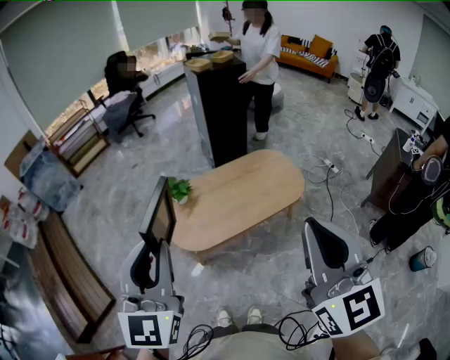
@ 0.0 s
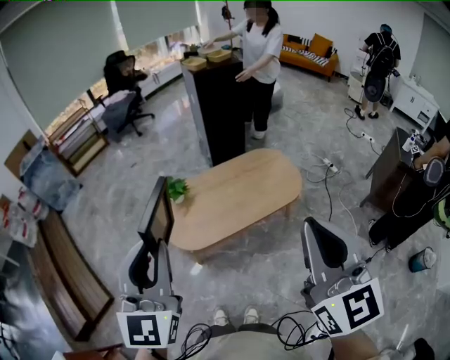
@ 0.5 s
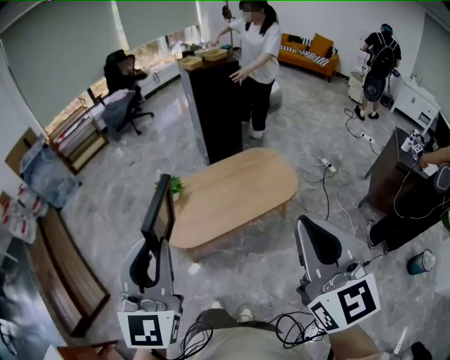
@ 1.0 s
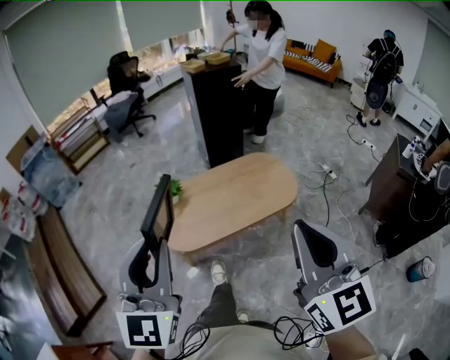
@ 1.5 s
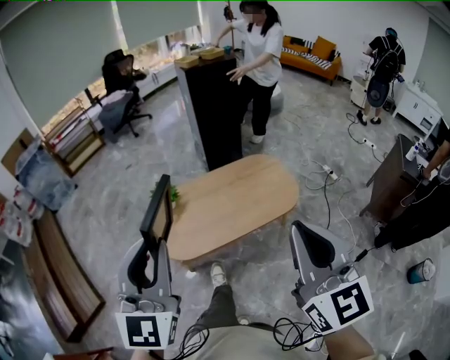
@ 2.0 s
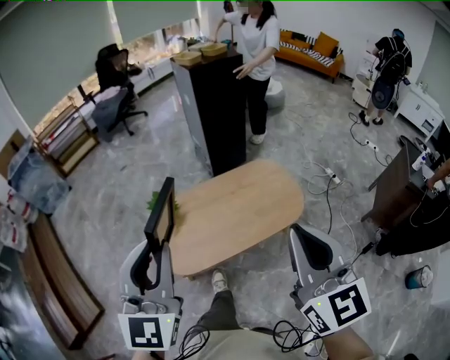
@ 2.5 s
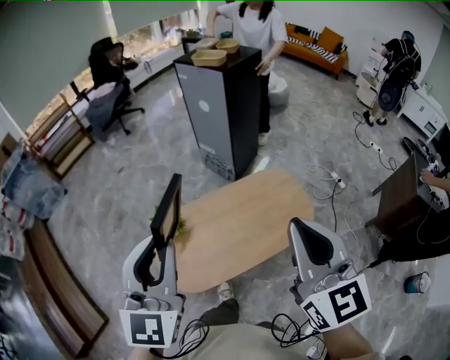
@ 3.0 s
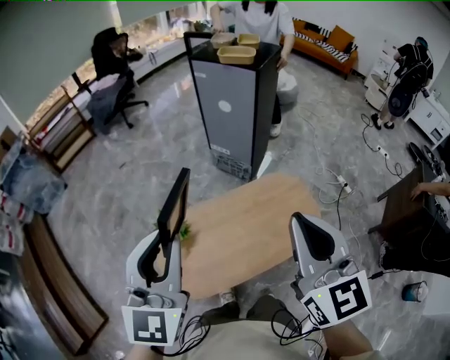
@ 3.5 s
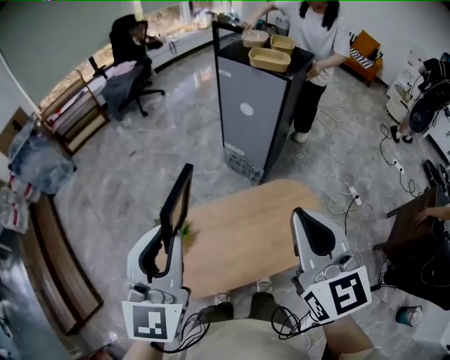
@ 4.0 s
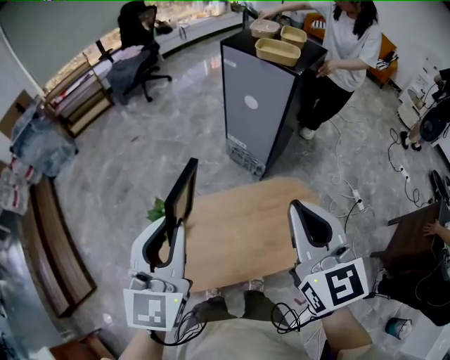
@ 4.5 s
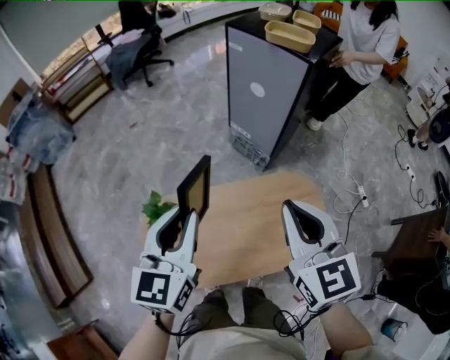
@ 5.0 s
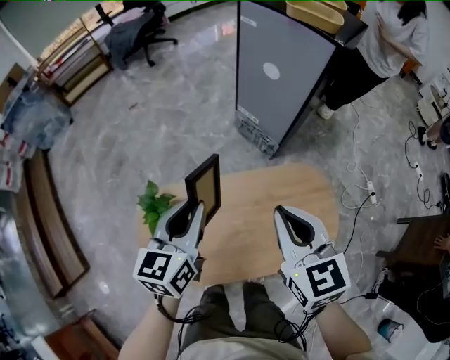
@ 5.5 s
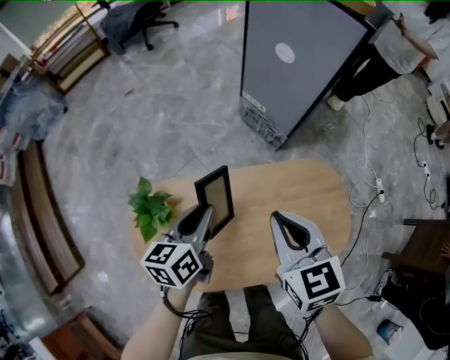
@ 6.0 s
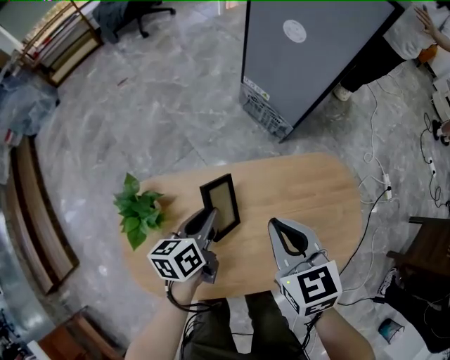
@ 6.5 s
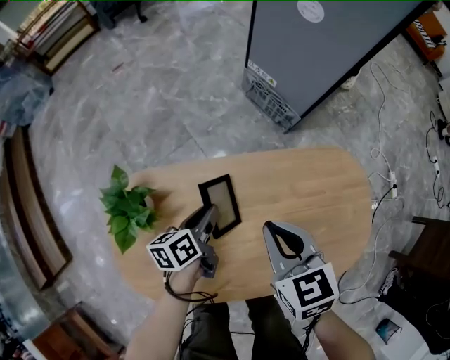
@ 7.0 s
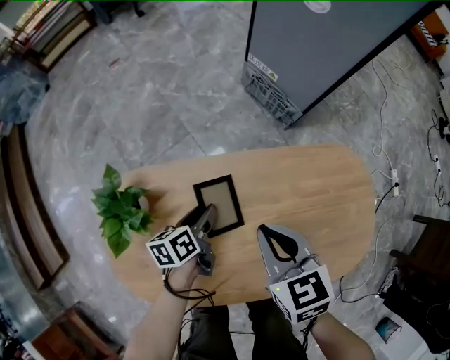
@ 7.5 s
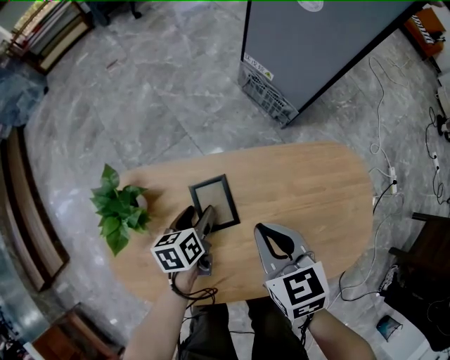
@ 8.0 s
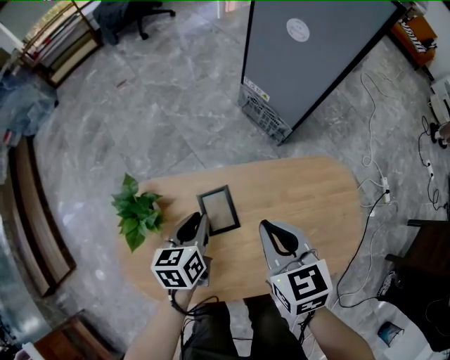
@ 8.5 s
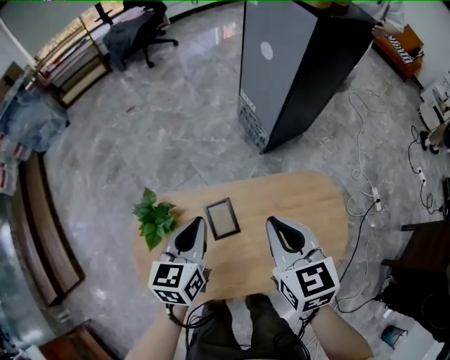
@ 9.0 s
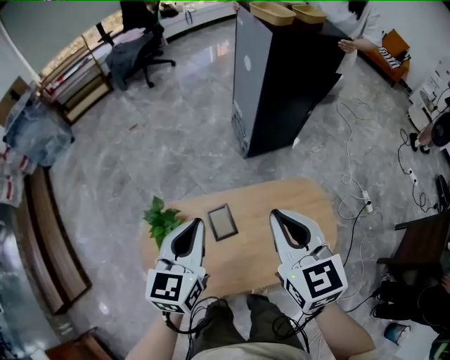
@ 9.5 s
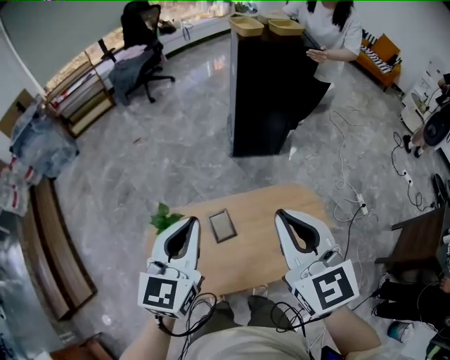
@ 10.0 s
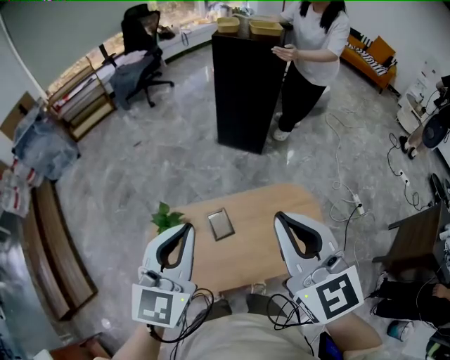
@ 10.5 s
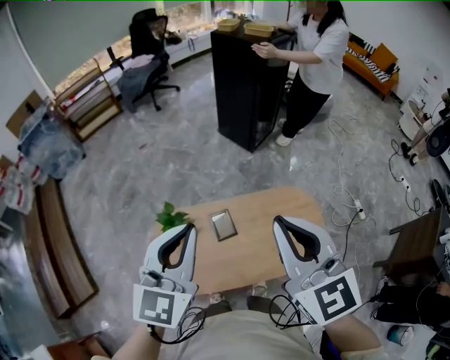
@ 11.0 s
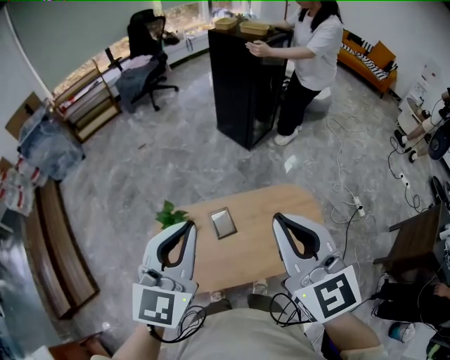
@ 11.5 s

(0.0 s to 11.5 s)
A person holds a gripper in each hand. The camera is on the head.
0.0 s - 2.0 s: The left gripper moves to the right, about 5 cm. The right gripper travels forward, to the right and downward by approximately 10 cm.
2.0 s - 4.0 s: Both grippers travel together forward, approximately 40 cm.
4.0 s - 6.0 s: The grippers both shift downward and forward by approximately 40 cm. The right gripper changes its angle by some 30 degrees. The left gripper rotates around the line of its fingers by about 50 degrees, counterclockwise from behind.
6.0 s - 7.5 s: Both grippers move downward, about 25 cm. The left gripper rotates some 20 degrees.
7.5 s - 9.5 s: Both grippers travel together upward, roughly 40 cm. The left gripper twists roughly 40 degrees clockwise, seen from behind, and closes. The right gripper swivels some 20 degrees.
9.5 s - 11.5 s: The grippers both shift upward and backward by some 20 cm. The left gripper turns by about 20 degrees.

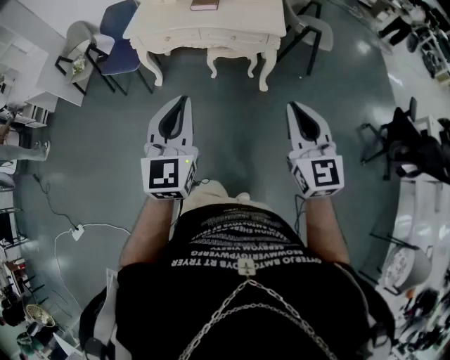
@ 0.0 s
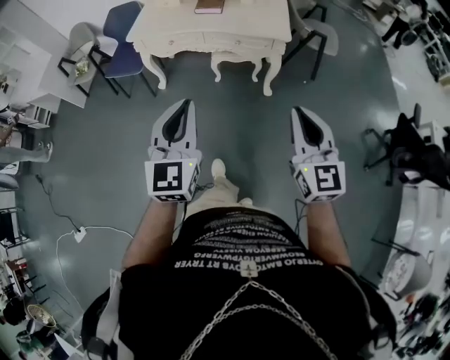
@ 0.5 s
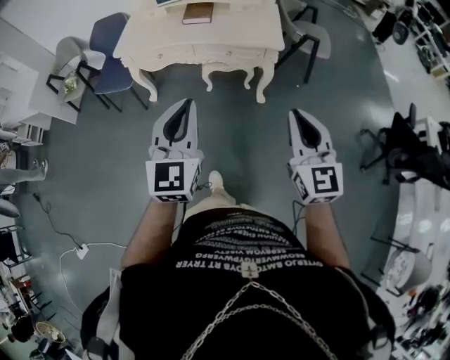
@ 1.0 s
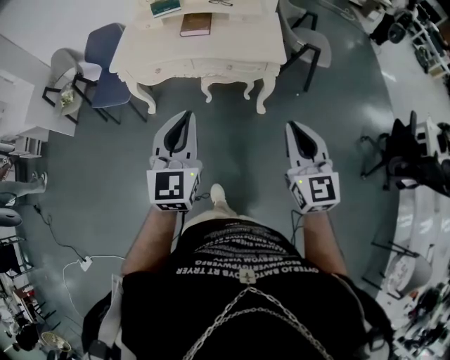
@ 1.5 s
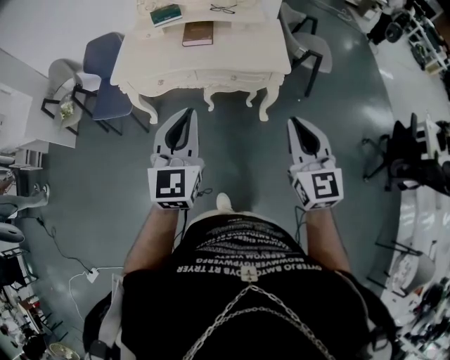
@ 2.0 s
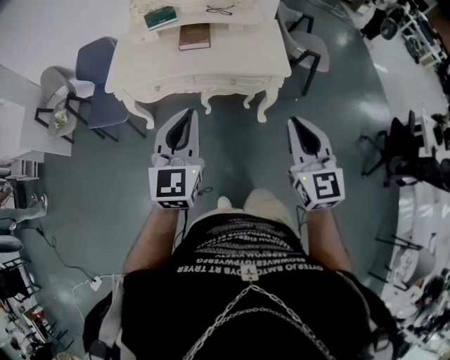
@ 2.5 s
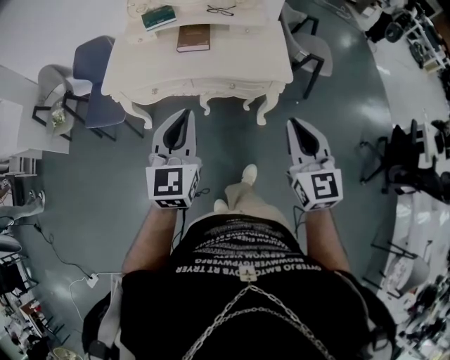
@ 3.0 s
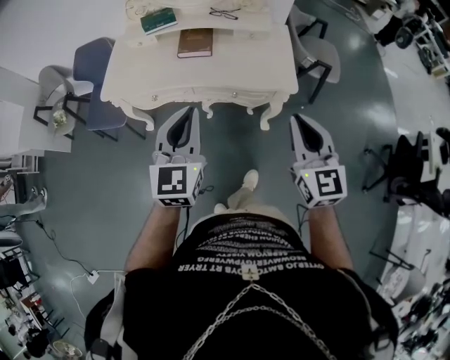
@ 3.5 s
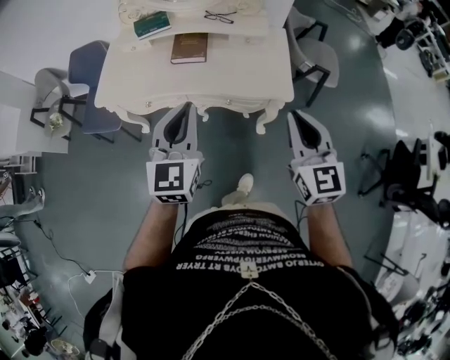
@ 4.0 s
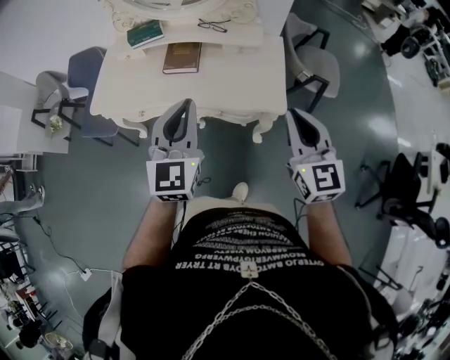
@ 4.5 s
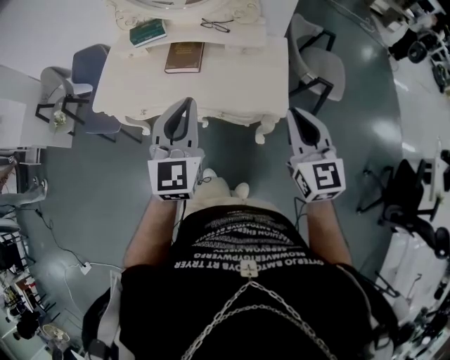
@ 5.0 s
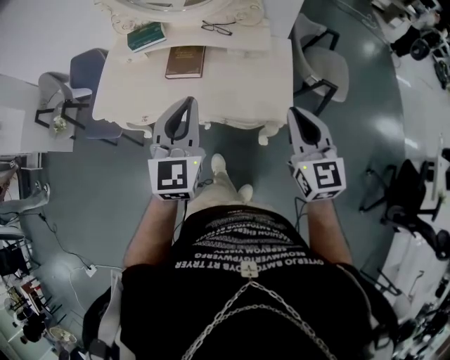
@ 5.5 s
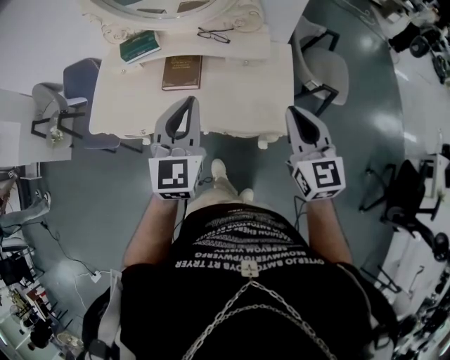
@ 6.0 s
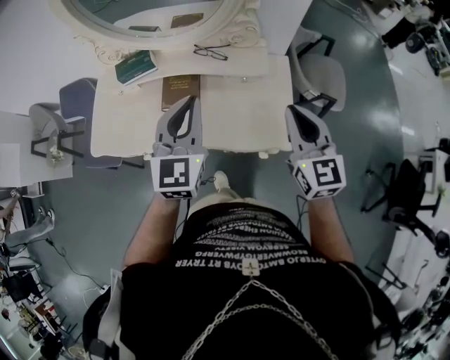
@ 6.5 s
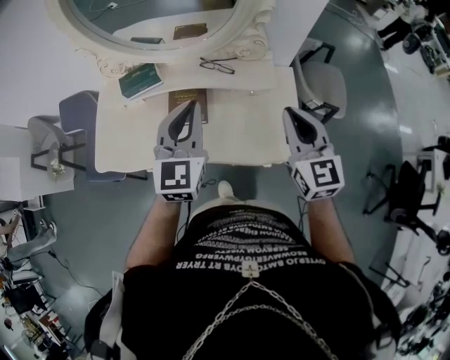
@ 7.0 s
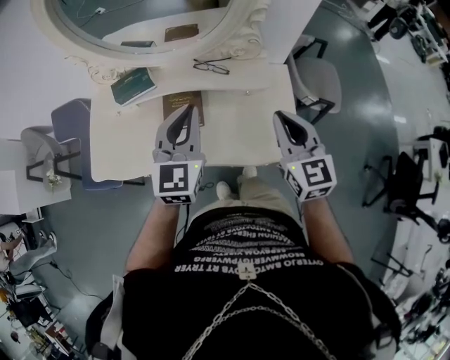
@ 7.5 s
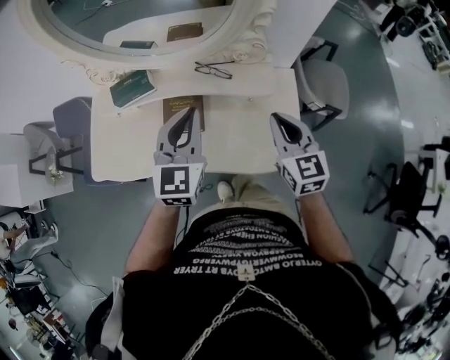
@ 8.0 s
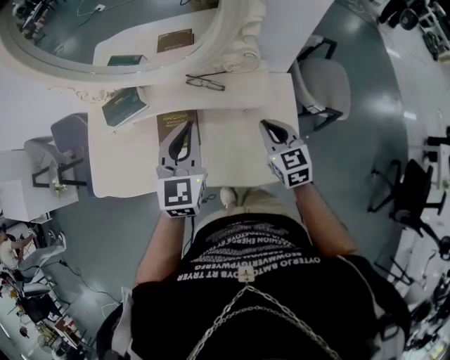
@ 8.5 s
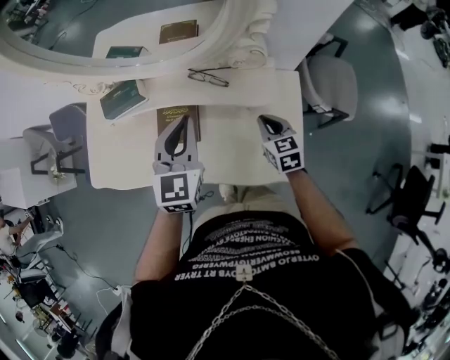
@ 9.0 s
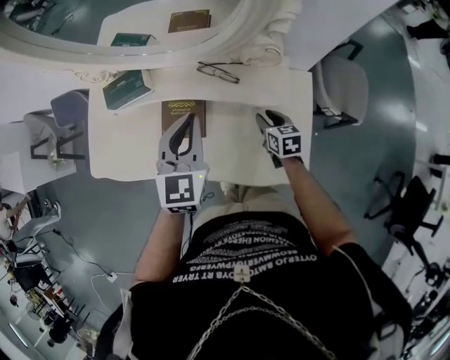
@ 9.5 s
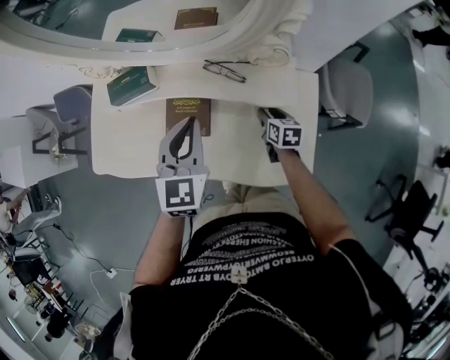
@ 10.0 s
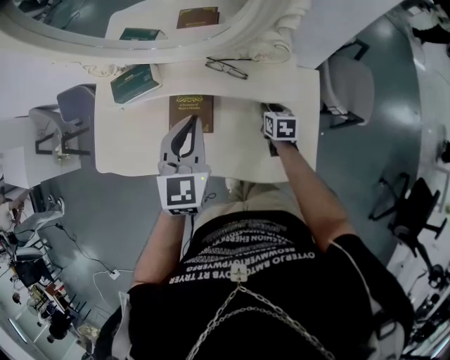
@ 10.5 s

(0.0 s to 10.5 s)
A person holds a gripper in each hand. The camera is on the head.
0.0 s - 2.0 s: Both grippers travel together forward, some 25 cm.
2.0 s - 4.0 s: Both grippers travel together forward, approximately 25 cm.
4.0 s - 6.5 s: Both grippers travel together forward, about 25 cm.
6.5 s - 8.5 s: The right gripper heads downward and forward, covering some 25 cm, and turns by some 20 degrees; the left gripper travels forward and downward by roughly 15 cm.
8.5 s - 10.5 s: The right gripper travels downward and forward by roughly 20 cm, and turns by roughly 30 degrees.

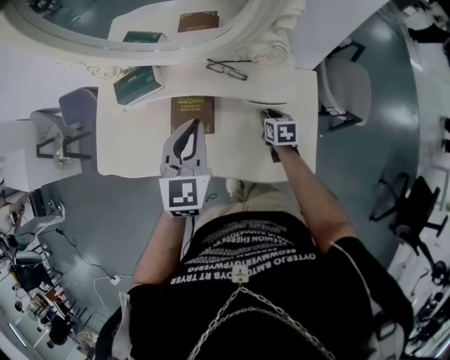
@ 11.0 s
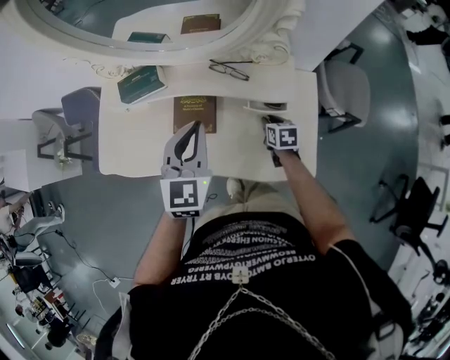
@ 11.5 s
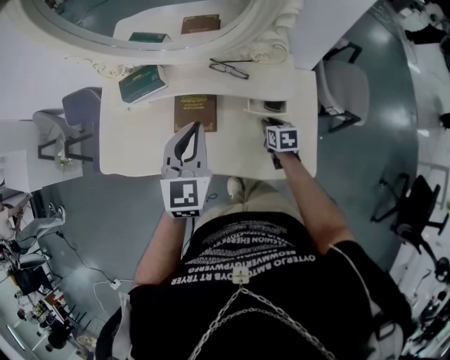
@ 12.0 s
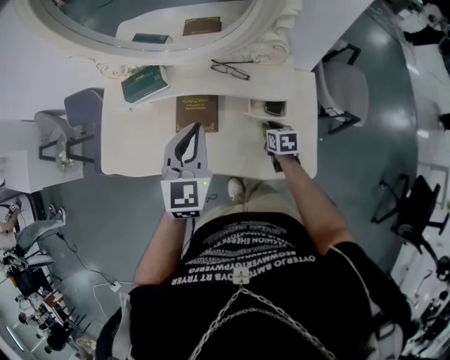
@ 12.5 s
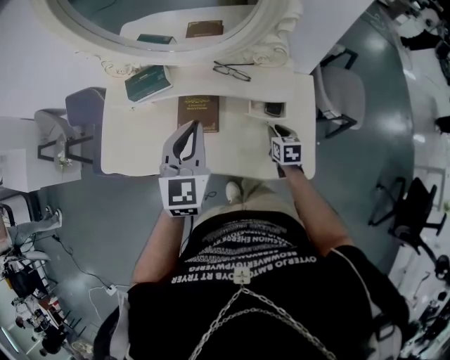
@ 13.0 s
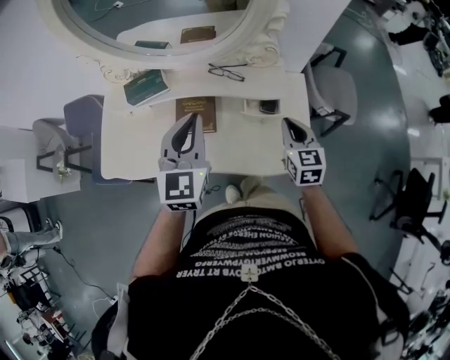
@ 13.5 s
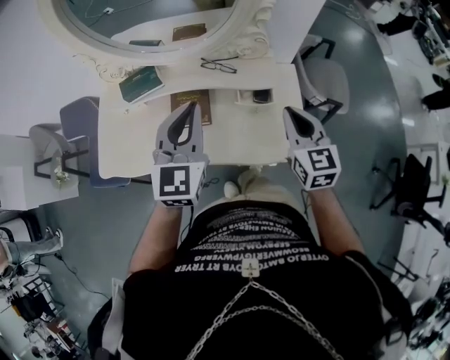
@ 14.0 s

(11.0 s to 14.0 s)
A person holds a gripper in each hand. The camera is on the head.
11.0 s - 12.5 s: The right gripper moves backward, roughly 5 cm.
12.5 s - 14.0 s: The right gripper is displaced upward by approximately 30 cm, and points its fingers about 40 degrees further upward; the left gripper shifts approximately 10 cm upward.

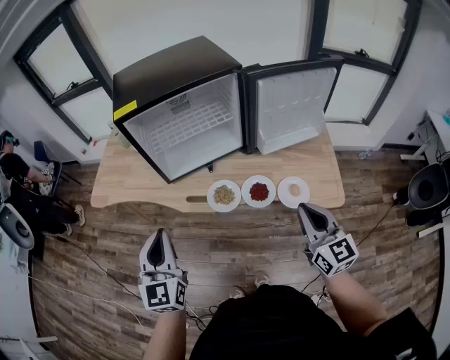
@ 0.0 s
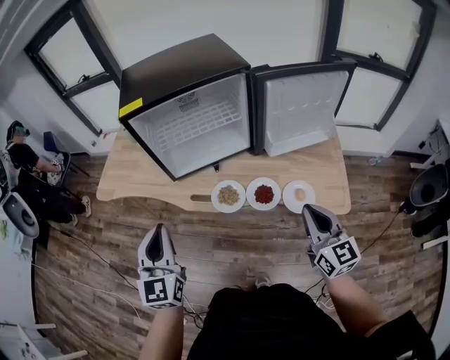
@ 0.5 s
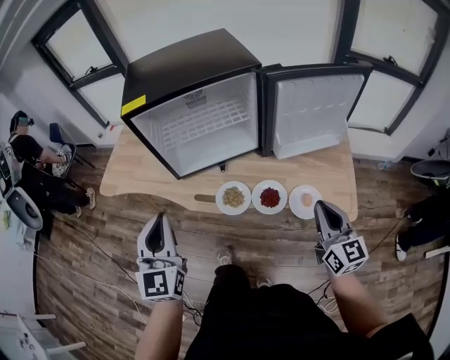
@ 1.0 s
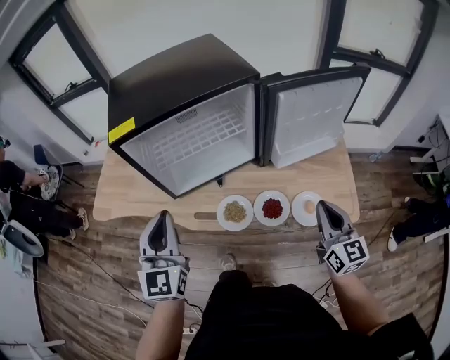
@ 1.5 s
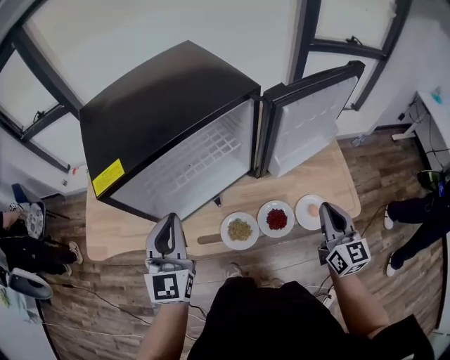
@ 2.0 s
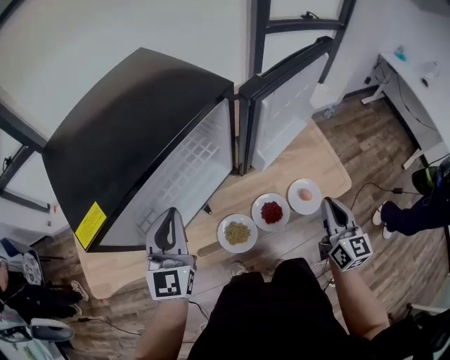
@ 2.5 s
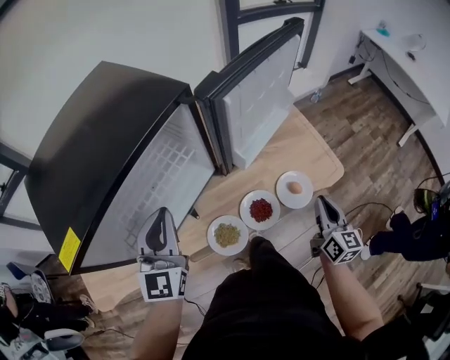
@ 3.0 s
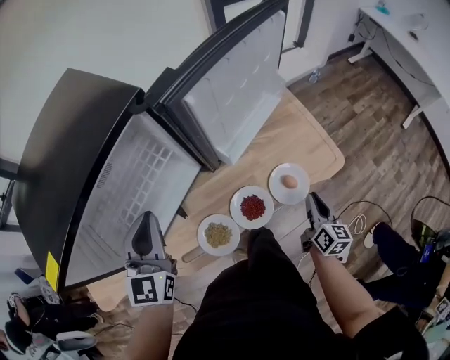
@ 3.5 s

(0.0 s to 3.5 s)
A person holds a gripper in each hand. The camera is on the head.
0.0 s - 2.0 s: The left gripper is displaced forward by roughly 25 cm. The right gripper heads forward, covering some 15 cm, and rotates approximately 20 degrees.
2.0 s - 3.5 s: The left gripper moves forward and to the right, about 15 cm, and changes its angle by approximately 20 degrees. The right gripper is displaced downward and to the right by some 20 cm, and rotates about 40 degrees.
